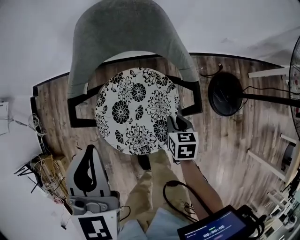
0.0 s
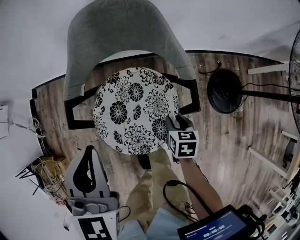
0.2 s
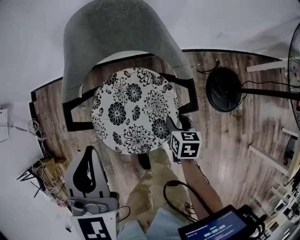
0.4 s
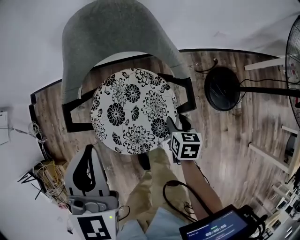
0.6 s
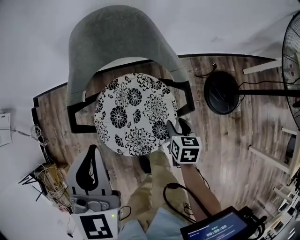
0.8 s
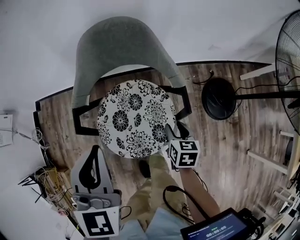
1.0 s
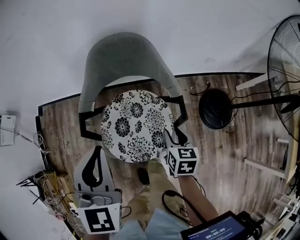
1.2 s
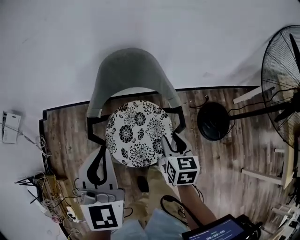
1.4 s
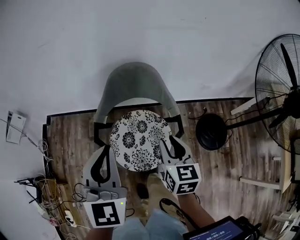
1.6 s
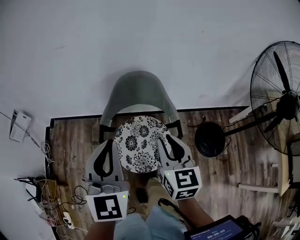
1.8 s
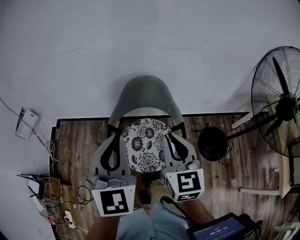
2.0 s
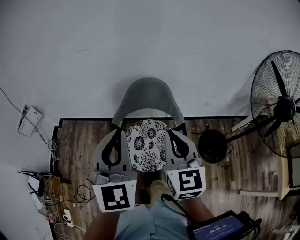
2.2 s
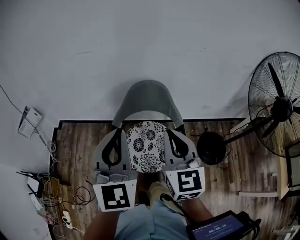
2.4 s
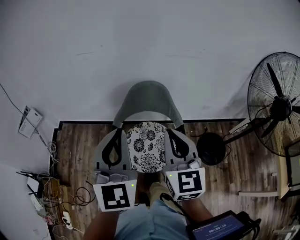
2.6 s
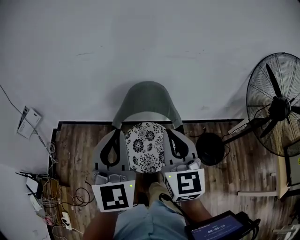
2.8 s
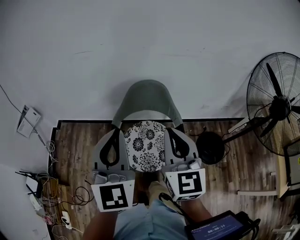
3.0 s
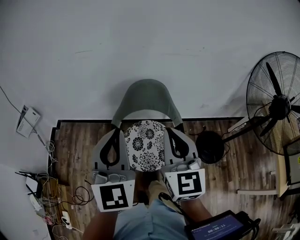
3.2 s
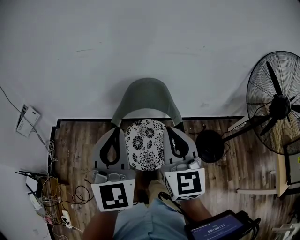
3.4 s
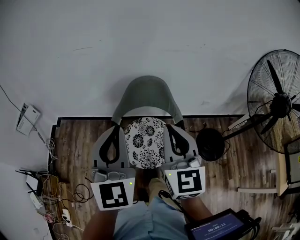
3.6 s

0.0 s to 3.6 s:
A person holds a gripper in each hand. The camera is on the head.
0.0 to 1.8 s: The right gripper heads upward, covering about 40 cm, angles its fingers upward, by roughly 40 degrees, and opens, then closes again, while the left gripper heads upward, covering approximately 20 cm.
1.8 to 3.6 s: The right gripper is displaced upward by about 15 cm, changes its angle by some 20 degrees, and closes up, while the left gripper heads upward, covering some 5 cm.

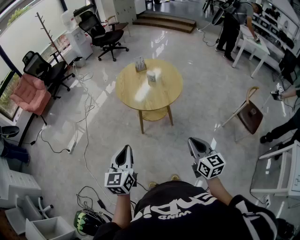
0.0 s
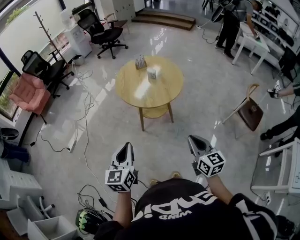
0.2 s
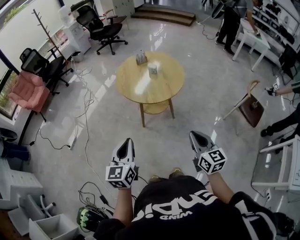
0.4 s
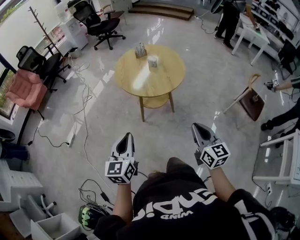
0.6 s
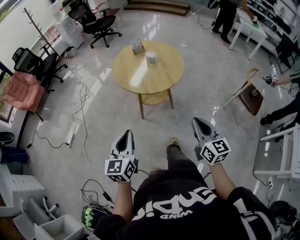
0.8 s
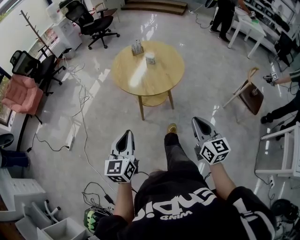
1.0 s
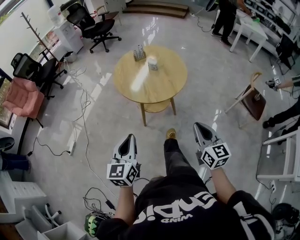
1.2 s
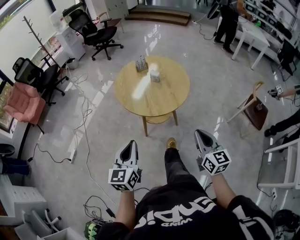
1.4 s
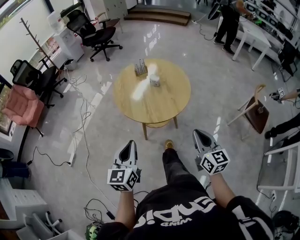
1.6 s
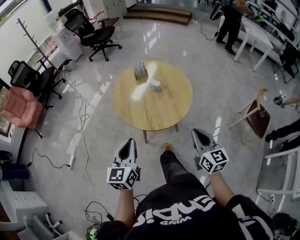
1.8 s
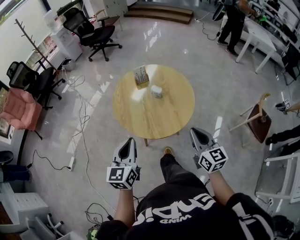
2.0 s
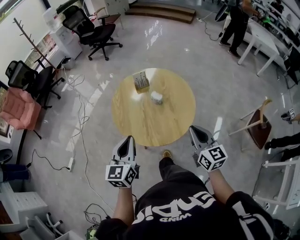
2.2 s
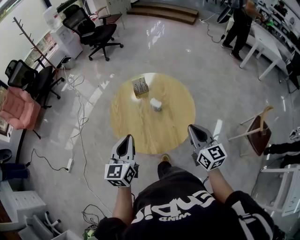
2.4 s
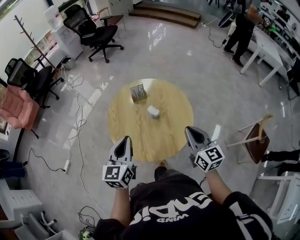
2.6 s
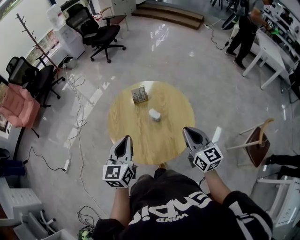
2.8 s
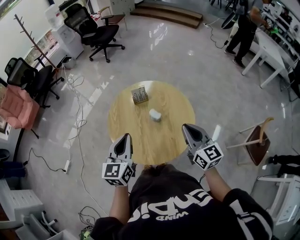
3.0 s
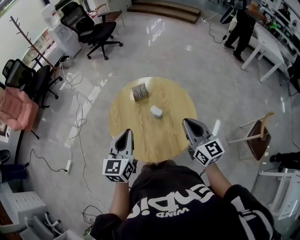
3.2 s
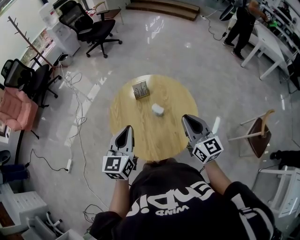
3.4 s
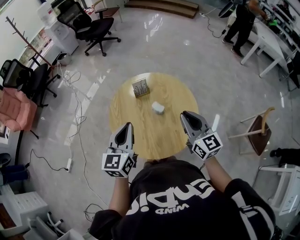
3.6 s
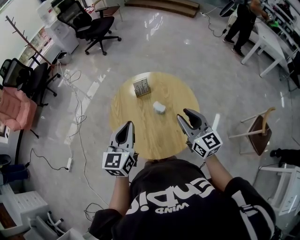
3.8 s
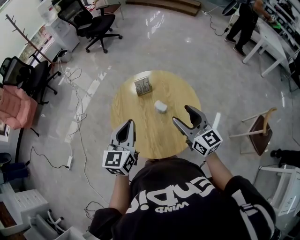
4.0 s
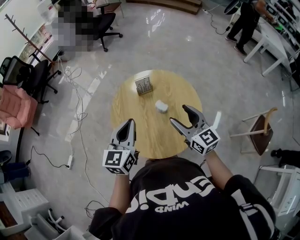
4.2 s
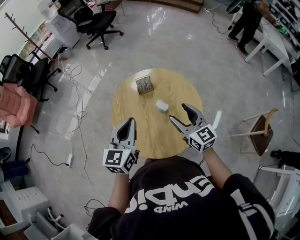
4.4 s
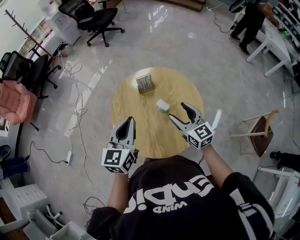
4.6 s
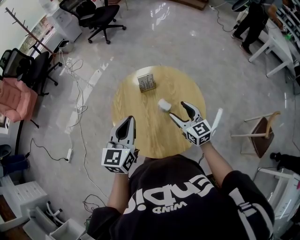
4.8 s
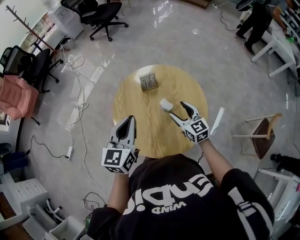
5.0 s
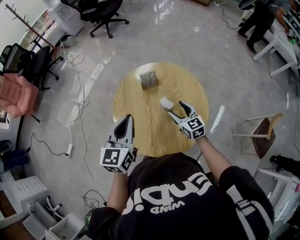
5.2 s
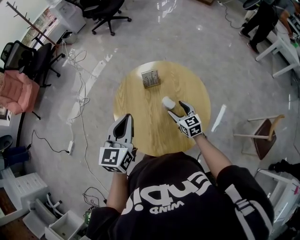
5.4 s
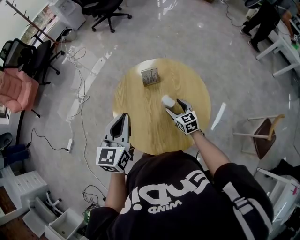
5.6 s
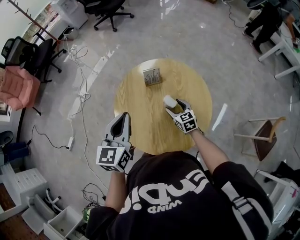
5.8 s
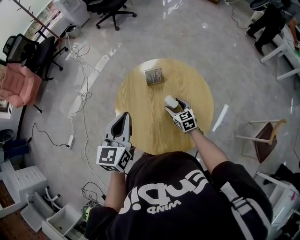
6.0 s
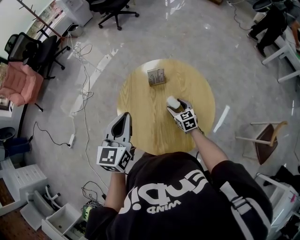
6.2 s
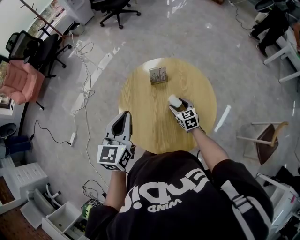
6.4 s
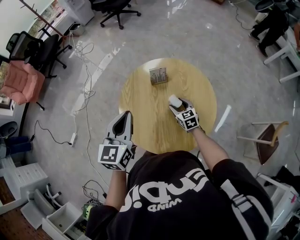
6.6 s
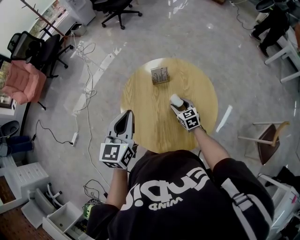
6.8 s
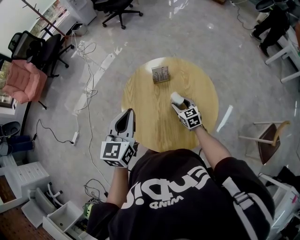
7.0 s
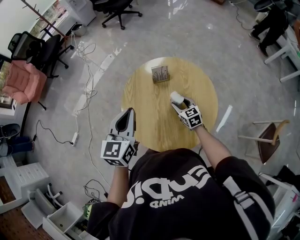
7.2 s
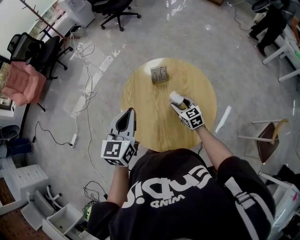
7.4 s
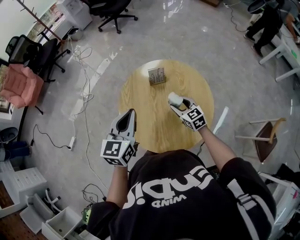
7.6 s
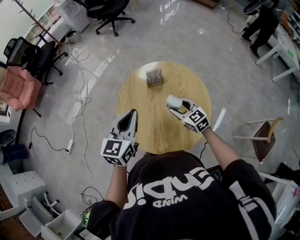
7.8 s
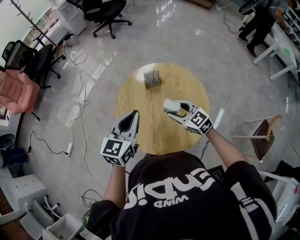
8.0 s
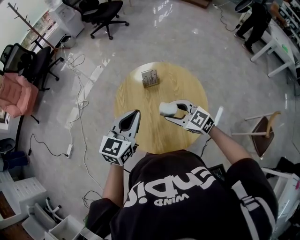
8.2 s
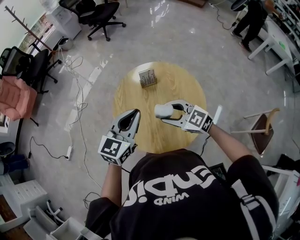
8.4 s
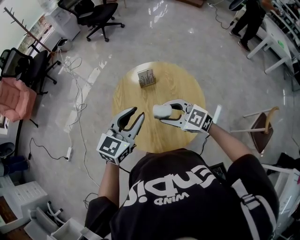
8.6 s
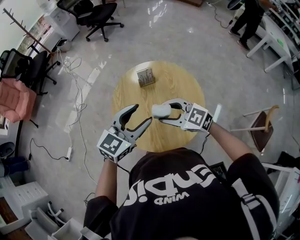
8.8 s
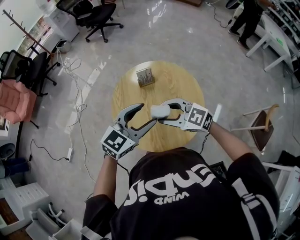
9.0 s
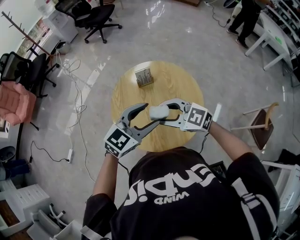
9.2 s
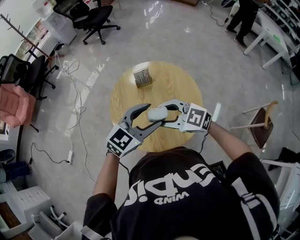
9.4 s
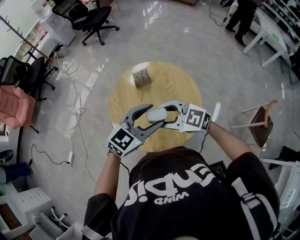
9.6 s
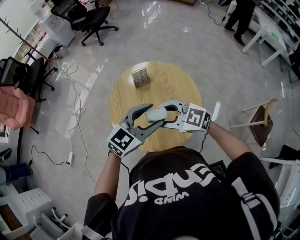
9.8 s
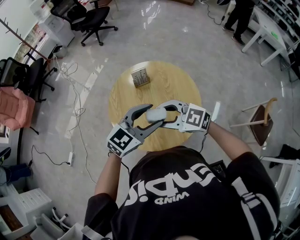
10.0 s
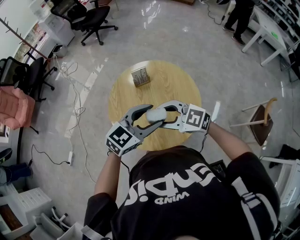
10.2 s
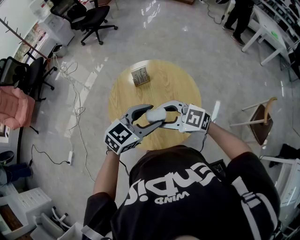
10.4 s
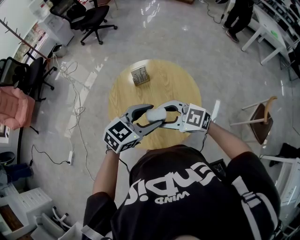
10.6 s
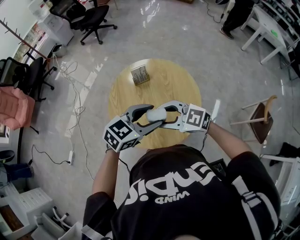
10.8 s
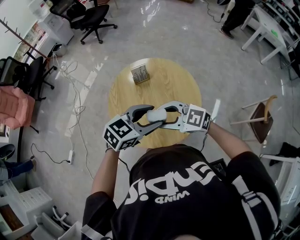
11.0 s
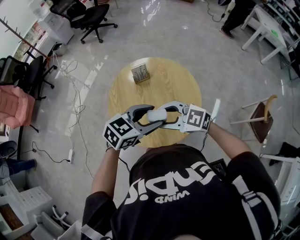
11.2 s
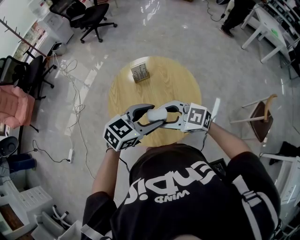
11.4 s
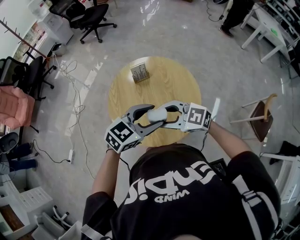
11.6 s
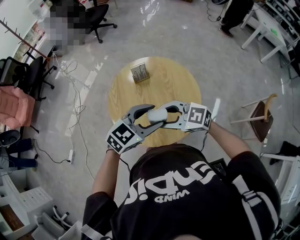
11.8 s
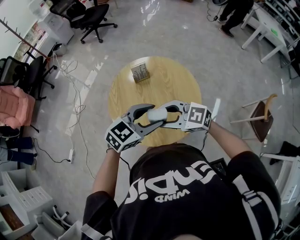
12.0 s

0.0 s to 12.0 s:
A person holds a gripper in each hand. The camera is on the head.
0.0 to 1.6 s: Both grippers move forward, approximately 15 cm.
1.6 to 3.0 s: Both grippers move forward, roughly 30 cm.
3.0 to 4.4 s: The right gripper heads forward, to the left and downward, covering approximately 10 cm, and opens its fingers, while the left gripper moves forward, some 5 cm.
4.4 to 6.0 s: The right gripper is displaced downward by approximately 25 cm, and turns by about 30 degrees, while the left gripper shifts by about 5 cm.
6.0 to 7.6 s: The right gripper heads upward, covering some 5 cm.
7.6 to 9.0 s: The right gripper heads upward, covering some 15 cm, and swivels approximately 30 degrees. Meanwhile the left gripper changes place by about 10 cm, rotates approximately 40 degrees, and opens its fingers.
9.0 to 10.4 s: The left gripper changes place by about 5 cm.
10.4 to 12.0 s: There are only small adjustments of the grippers.

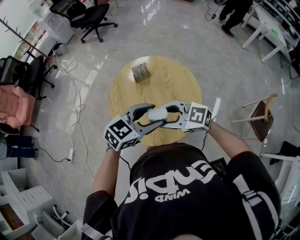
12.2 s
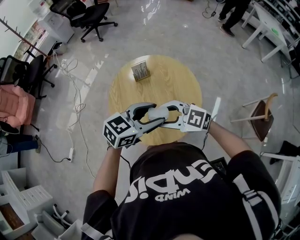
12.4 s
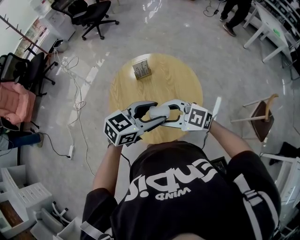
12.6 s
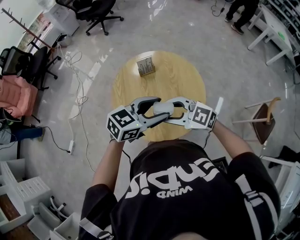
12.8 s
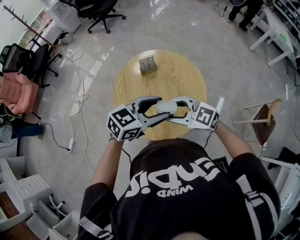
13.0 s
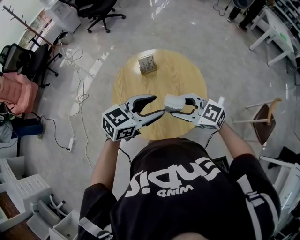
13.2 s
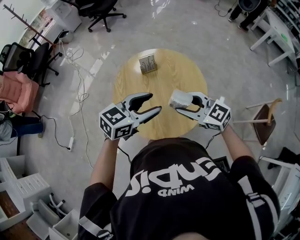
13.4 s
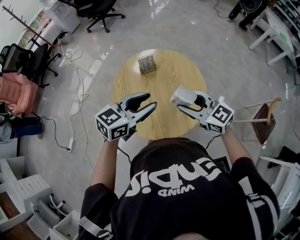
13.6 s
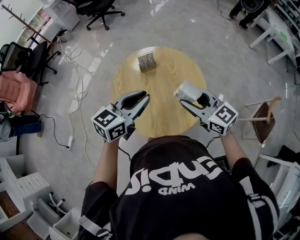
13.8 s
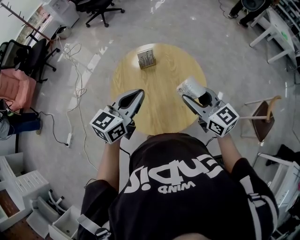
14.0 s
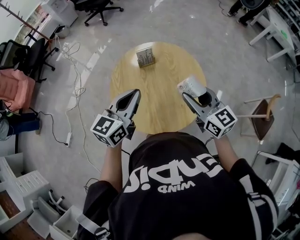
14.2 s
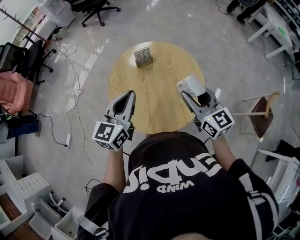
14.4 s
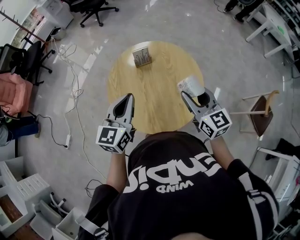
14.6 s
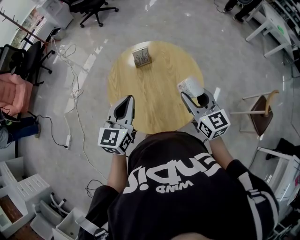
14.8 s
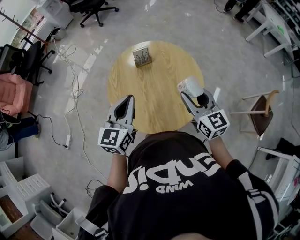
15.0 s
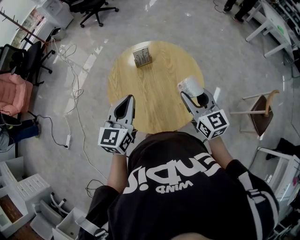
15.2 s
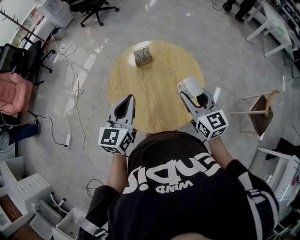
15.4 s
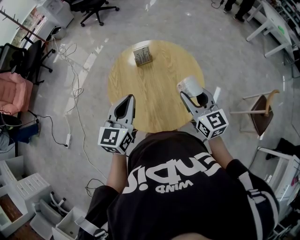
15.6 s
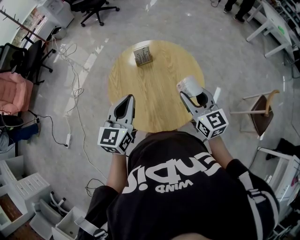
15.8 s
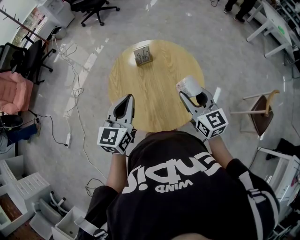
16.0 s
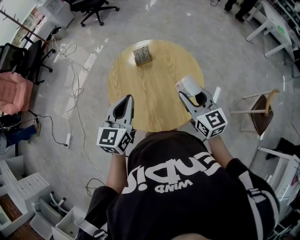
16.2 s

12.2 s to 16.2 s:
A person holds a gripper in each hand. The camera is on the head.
12.2 to 13.6 s: The left gripper shifts by about 5 cm, while the right gripper ends up about 10 cm from where it was, and changes its angle by about 20 degrees.
13.6 to 14.8 s: The right gripper rotates approximately 30 degrees; the left gripper moves to the left, about 5 cm, changes its angle by some 30 degrees, and closes up.
14.8 to 16.2 s: Both grippers stay about where they are.

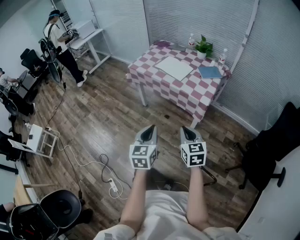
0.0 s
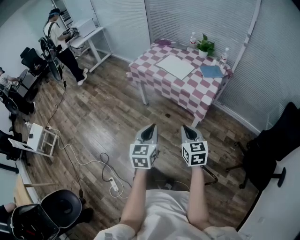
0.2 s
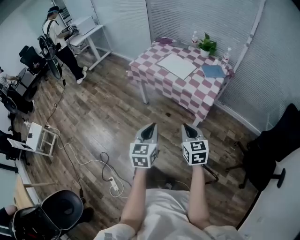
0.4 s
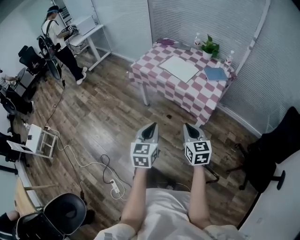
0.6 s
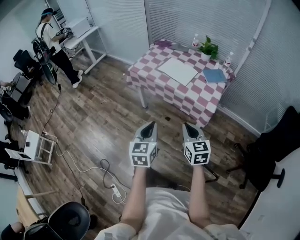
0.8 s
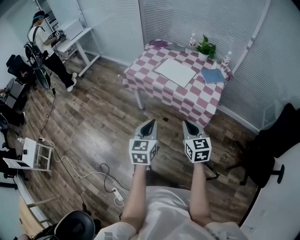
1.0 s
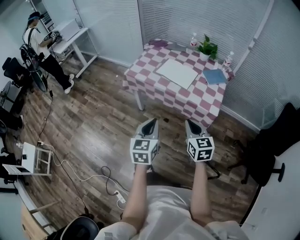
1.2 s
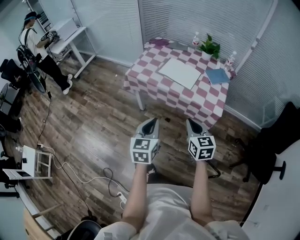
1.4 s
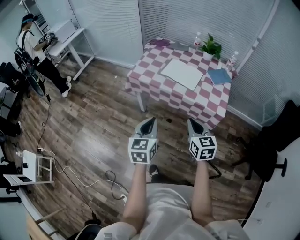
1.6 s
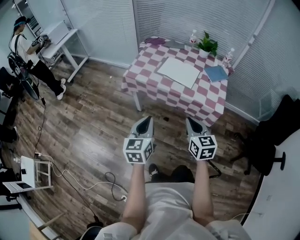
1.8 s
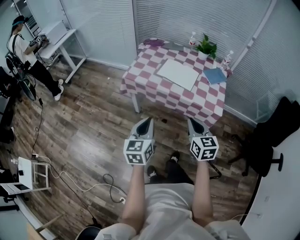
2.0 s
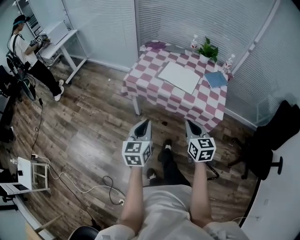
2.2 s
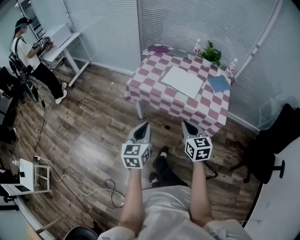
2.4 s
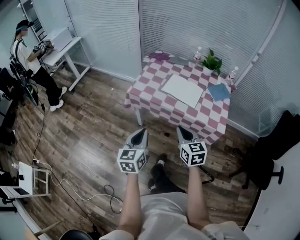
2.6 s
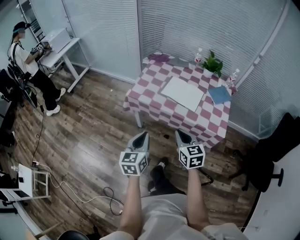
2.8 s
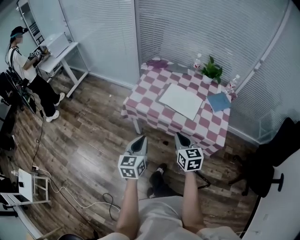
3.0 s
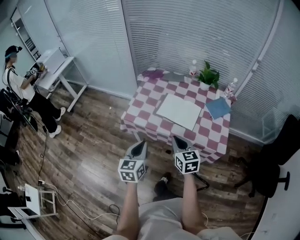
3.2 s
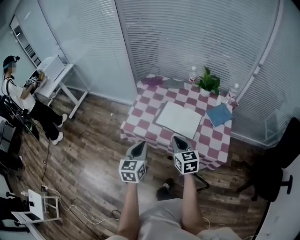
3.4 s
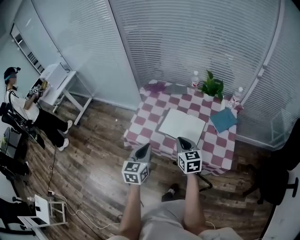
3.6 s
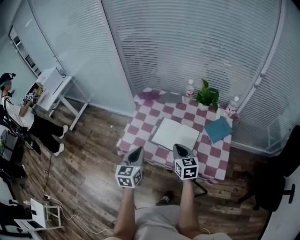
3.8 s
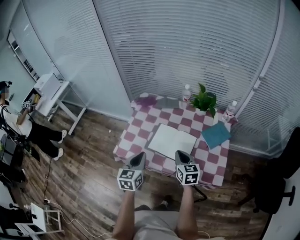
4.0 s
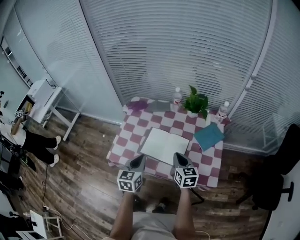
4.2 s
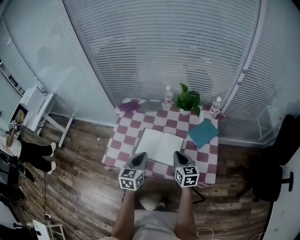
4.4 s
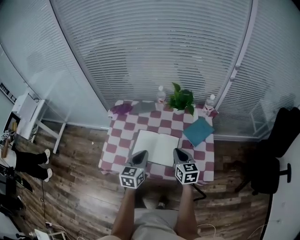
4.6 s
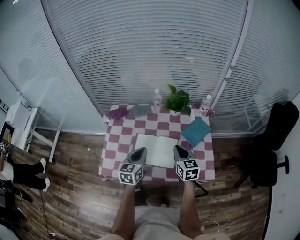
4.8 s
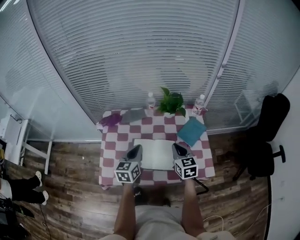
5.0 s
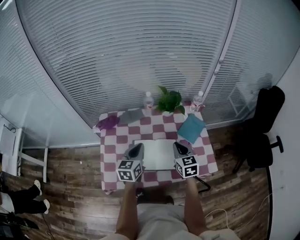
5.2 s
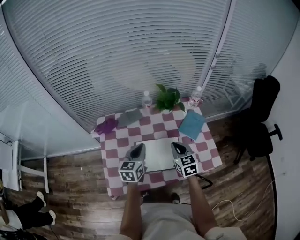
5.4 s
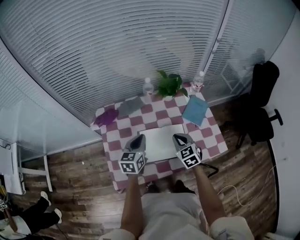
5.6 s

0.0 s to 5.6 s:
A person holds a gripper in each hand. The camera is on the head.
0.0 to 1.4 s: Both grippers move forward and to the left, approximately 25 cm.
1.4 to 2.8 s: The grippers both shift forward and to the left by some 15 cm.
2.8 to 4.2 s: The grippers both shift forward and to the right by some 30 cm.
4.2 to 5.6 s: The left gripper moves roughly 20 cm, and turns by approximately 30 degrees; the right gripper shifts by roughly 10 cm, and swivels roughly 30 degrees.
